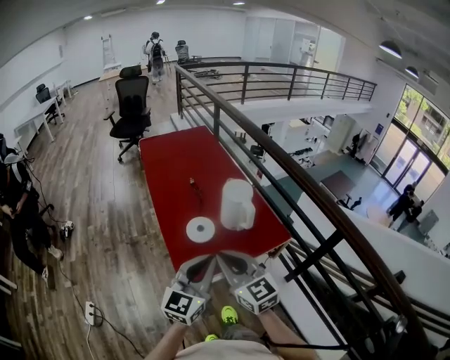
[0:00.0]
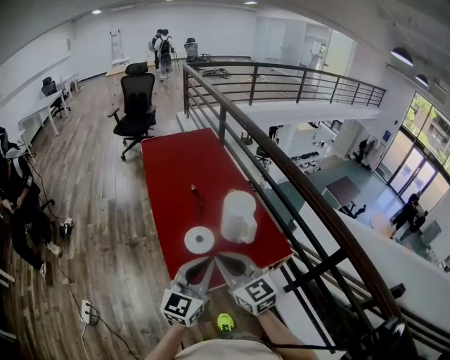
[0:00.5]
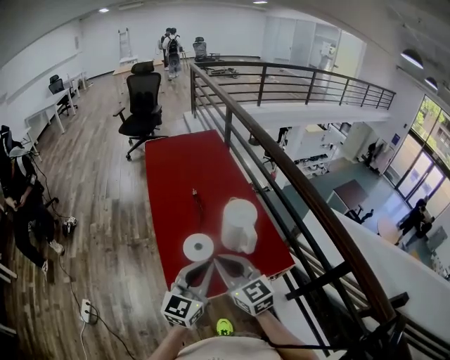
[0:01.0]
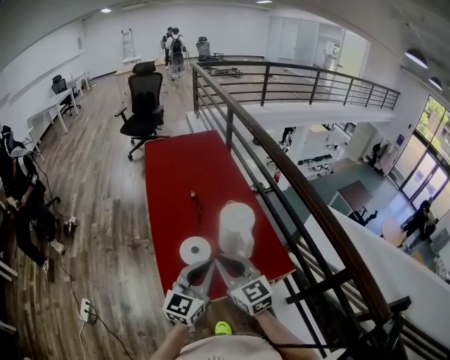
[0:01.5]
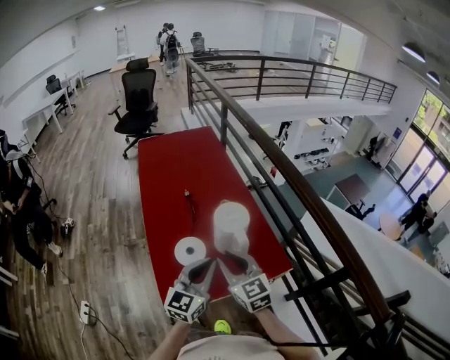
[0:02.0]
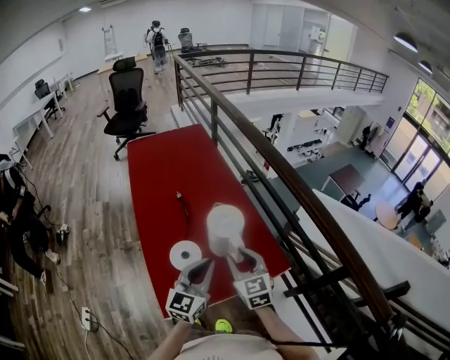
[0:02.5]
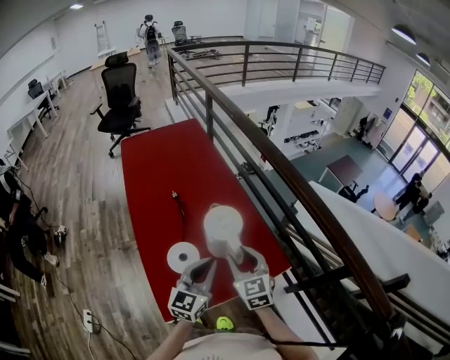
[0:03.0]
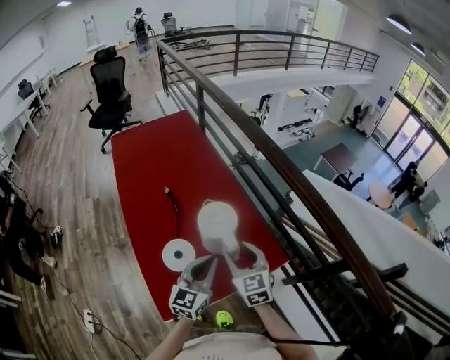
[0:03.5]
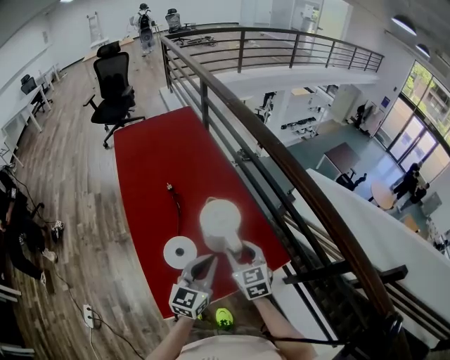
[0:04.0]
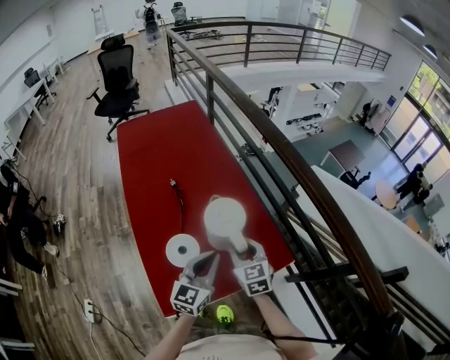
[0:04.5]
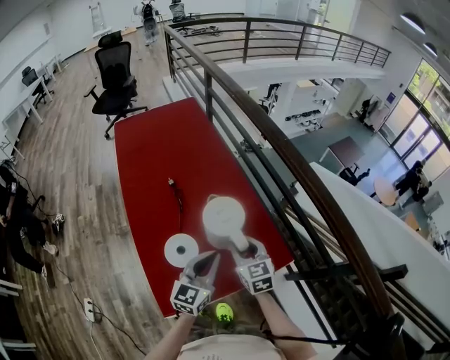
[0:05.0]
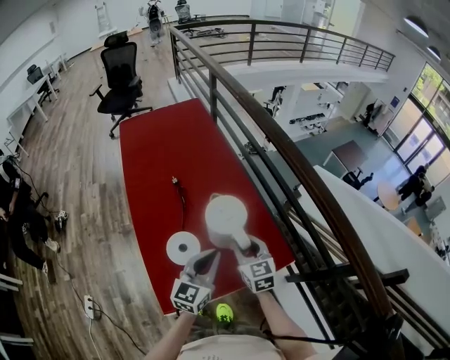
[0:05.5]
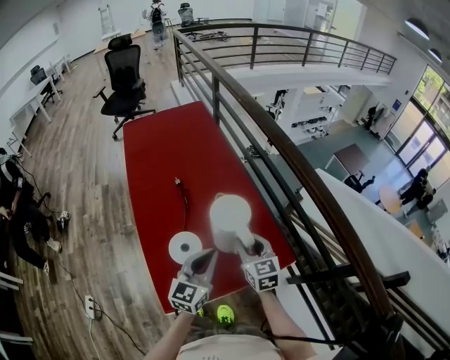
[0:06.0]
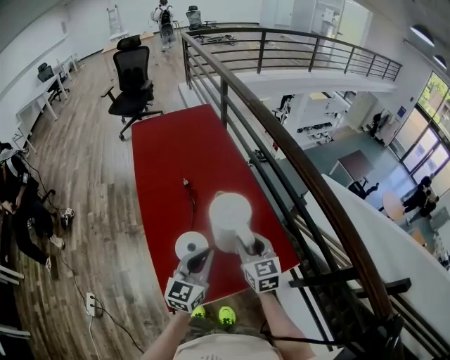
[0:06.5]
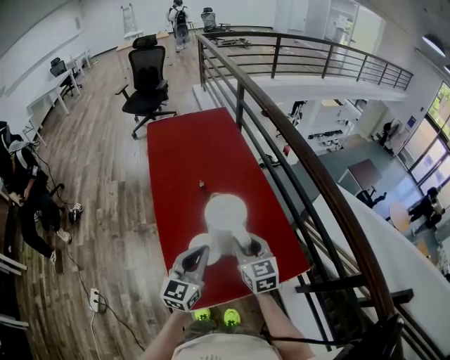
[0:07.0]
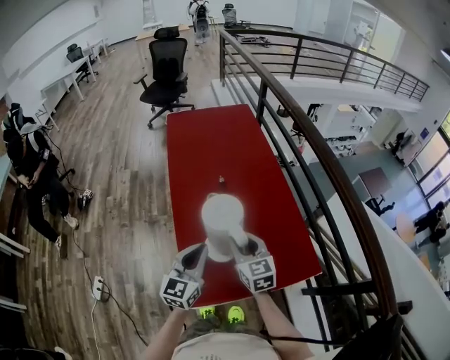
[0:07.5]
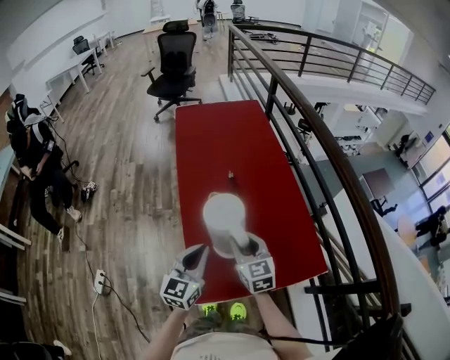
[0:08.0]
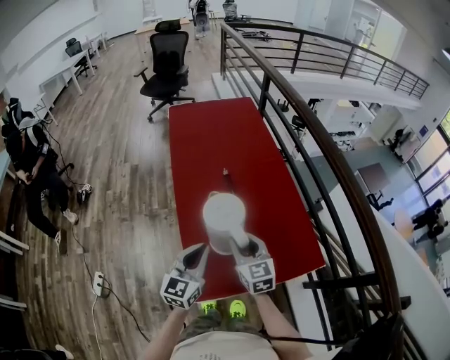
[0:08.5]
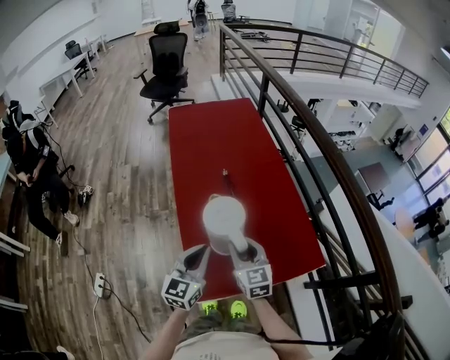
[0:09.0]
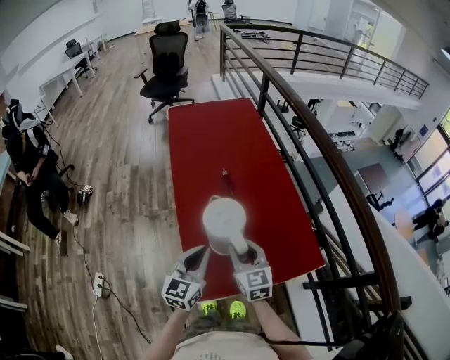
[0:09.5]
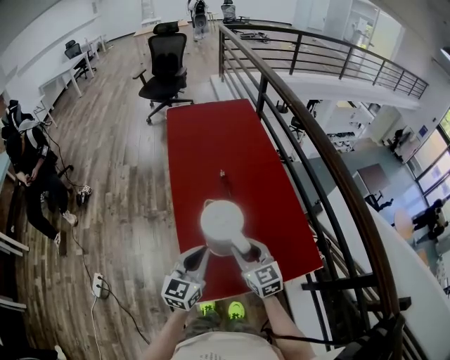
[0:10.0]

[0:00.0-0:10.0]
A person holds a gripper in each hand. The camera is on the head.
0.0 to 2.0 s: The two grippers go some 20 cm forward, to the right and downward. The right gripper opens its fingers.
2.0 to 4.0 s: The right gripper travels downward, forward and to the right by about 15 cm, and turns by some 20 degrees. The left gripper moves forward and downward, about 5 cm.
4.0 to 6.0 s: The grippers stay close to where they were, moving slightly.
6.0 to 8.0 s: Both grippers move to the left, roughly 20 cm.
8.0 to 10.0 s: There are only small adjustments of the grippers.

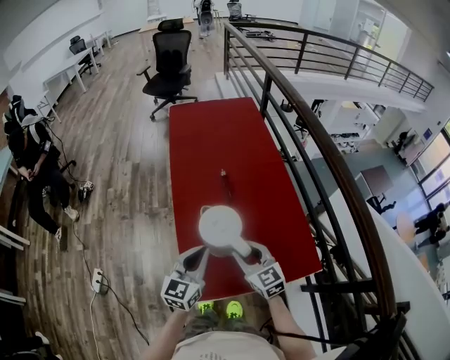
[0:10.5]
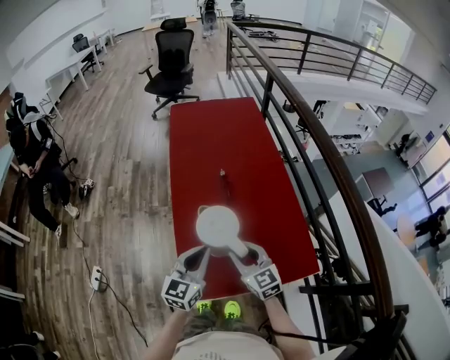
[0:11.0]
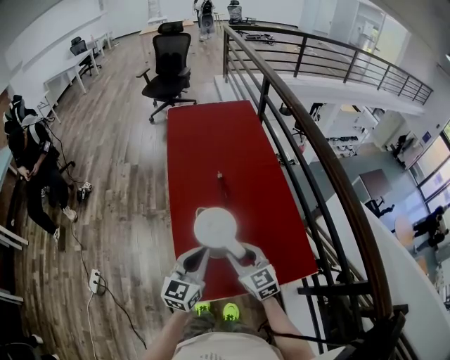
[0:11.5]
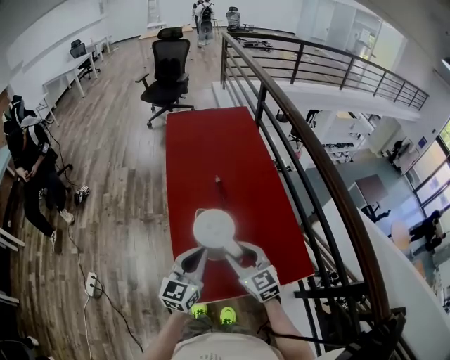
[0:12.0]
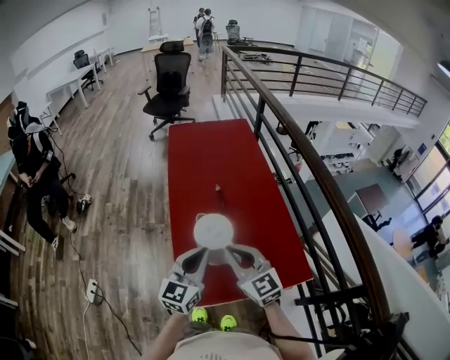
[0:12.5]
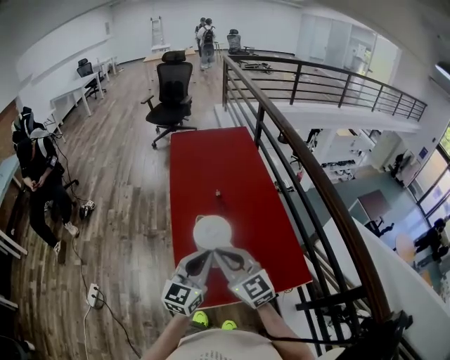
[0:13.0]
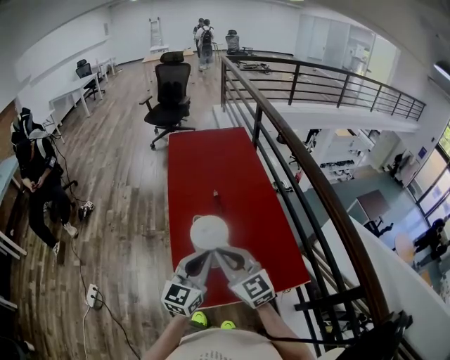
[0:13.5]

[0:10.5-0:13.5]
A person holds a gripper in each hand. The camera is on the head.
10.5 to 12.0 s: The grippers stay close to where they were, moving slightly.
12.0 to 13.5 s: The right gripper is displaced upward by approximately 10 cm, and closes up, while the left gripper changes place by roughly 5 cm.

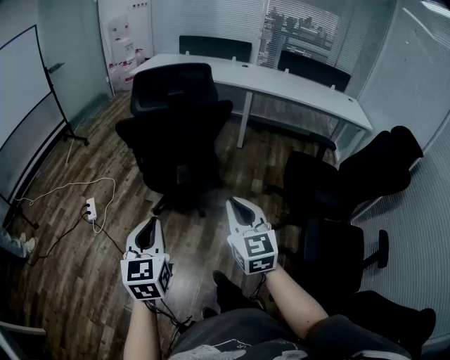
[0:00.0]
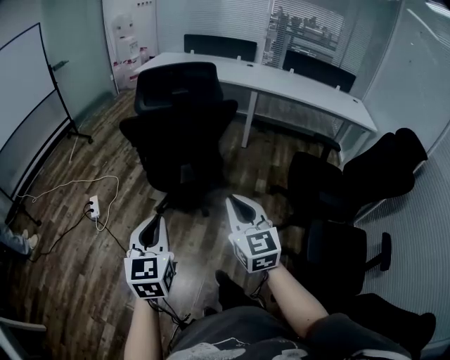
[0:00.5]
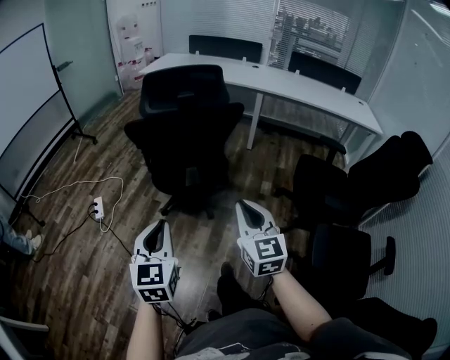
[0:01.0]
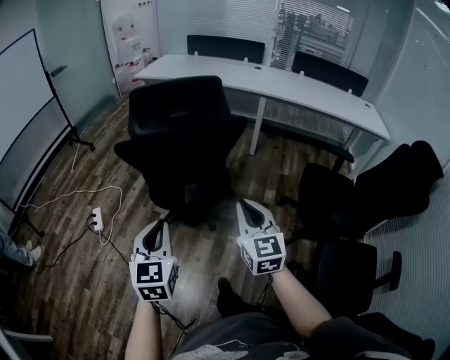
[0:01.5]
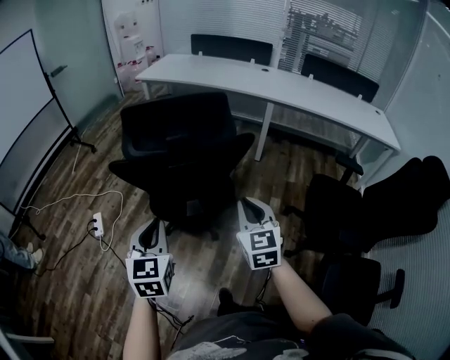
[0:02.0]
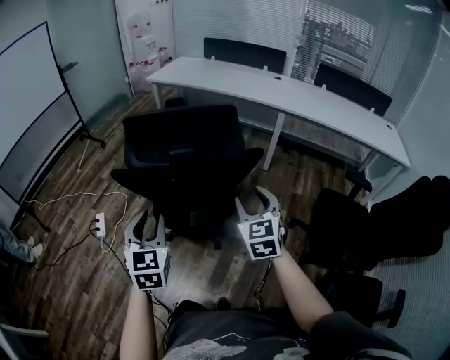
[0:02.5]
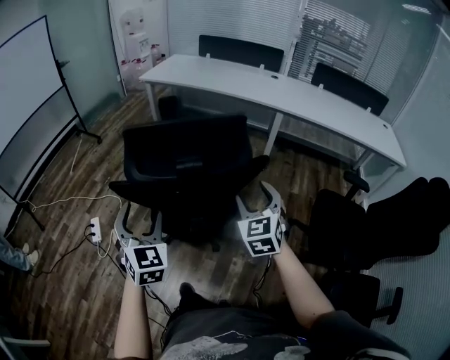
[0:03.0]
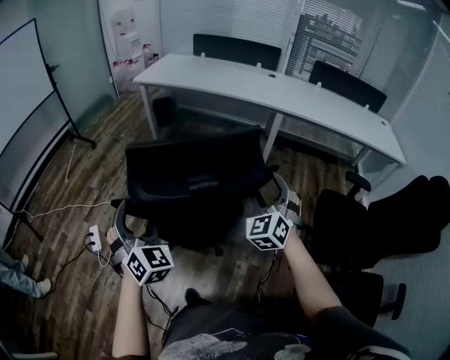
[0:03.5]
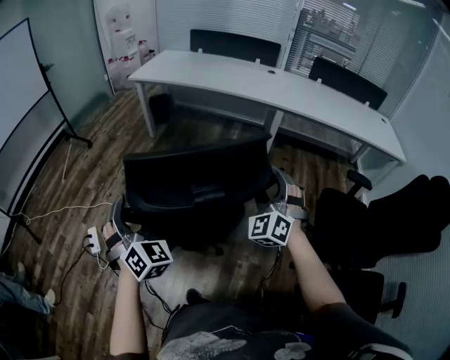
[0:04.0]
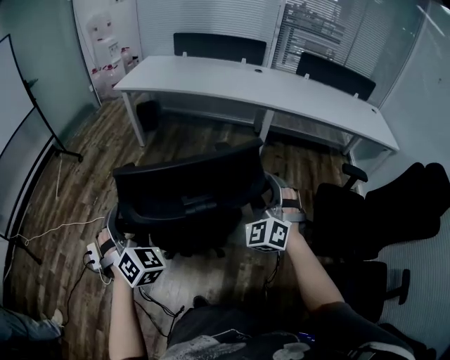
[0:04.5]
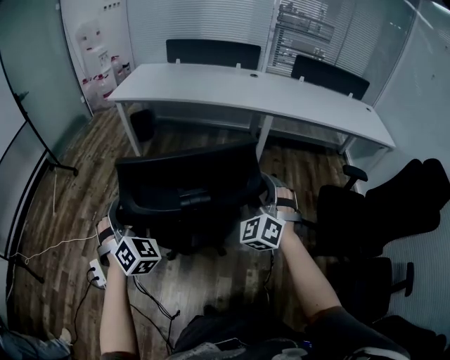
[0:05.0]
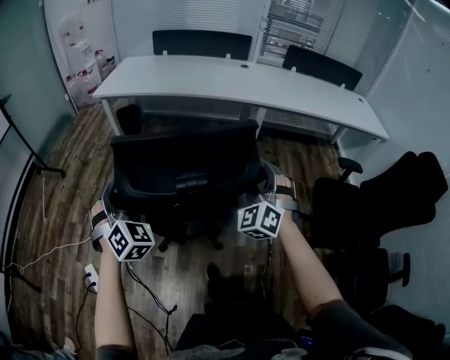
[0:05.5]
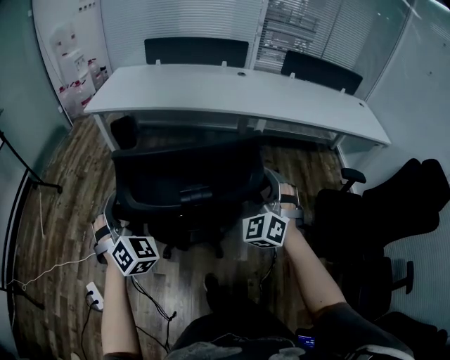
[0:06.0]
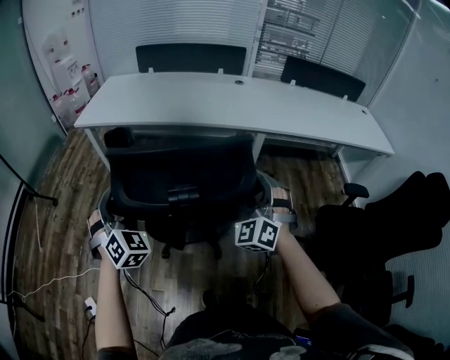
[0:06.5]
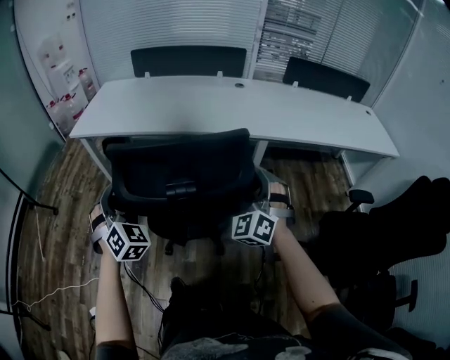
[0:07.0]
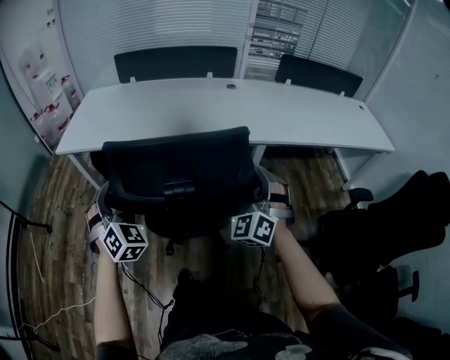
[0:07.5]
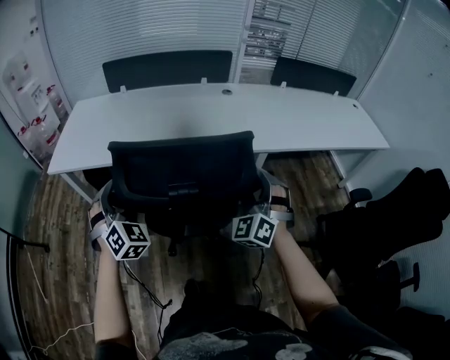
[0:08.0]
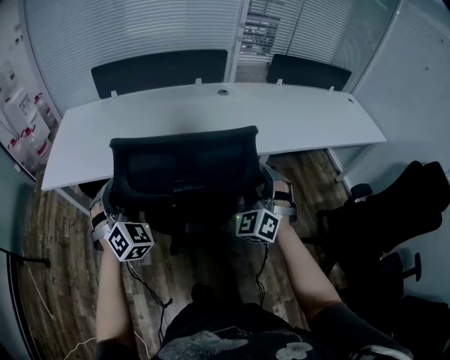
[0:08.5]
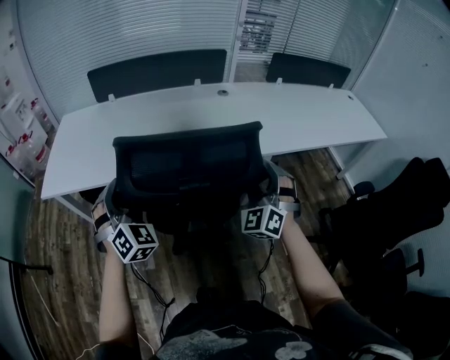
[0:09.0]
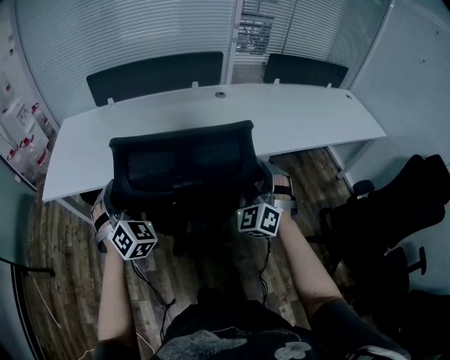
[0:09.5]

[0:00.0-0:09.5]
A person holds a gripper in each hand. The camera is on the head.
0.0 to 2.0 s: Both grippers travel together forward, roughly 25 cm.
2.0 to 4.0 s: The left gripper is displaced forward and to the left by about 25 cm, rotates around the line of its fingers by approximately 40 degrees, clockwise from behind, and opens. The right gripper is displaced forward by about 20 cm, rotates around the line of its fingers by approximately 50 degrees, counterclockwise from behind, and opens up.
4.0 to 5.5 s: The right gripper travels forward and to the left by some 15 cm. The left gripper travels forward by some 20 cm.
5.5 to 7.5 s: Both grippers travel together forward, about 35 cm.
7.5 to 9.5 s: Both grippers travel together forward, approximately 15 cm.

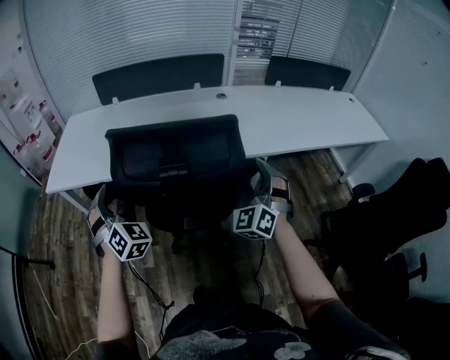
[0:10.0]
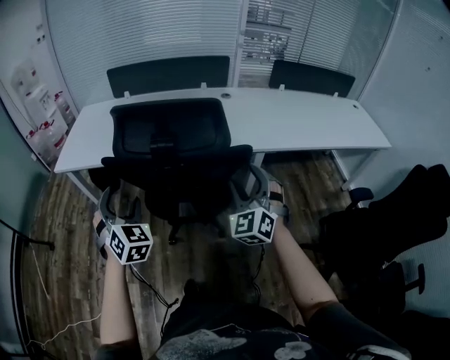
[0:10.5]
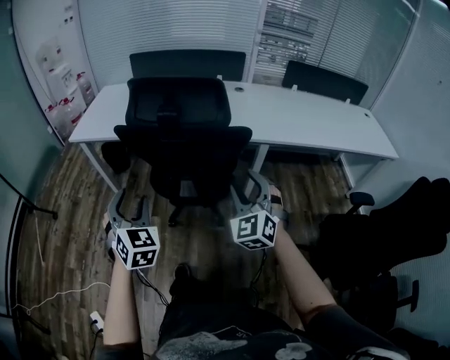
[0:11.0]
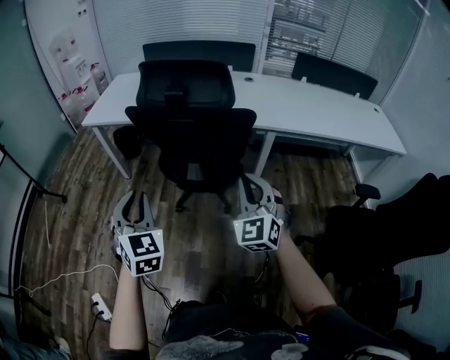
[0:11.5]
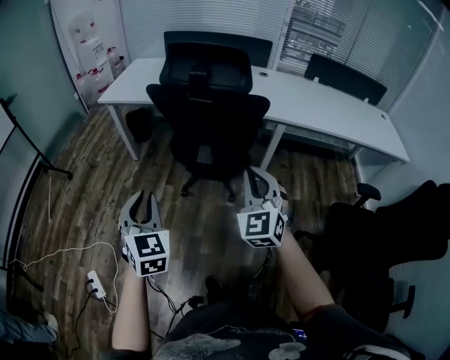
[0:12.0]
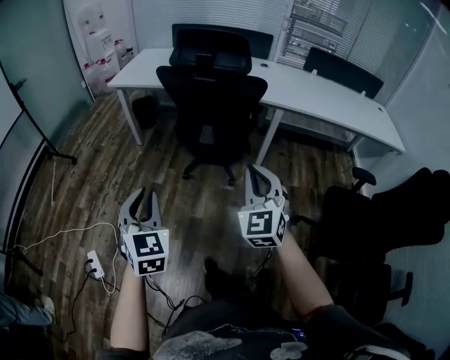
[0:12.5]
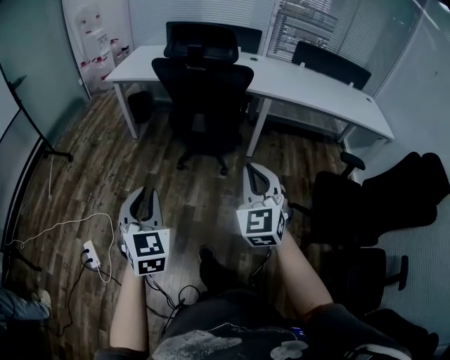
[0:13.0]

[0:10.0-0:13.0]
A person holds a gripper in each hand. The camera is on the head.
10.0 to 11.5 s: The grippers both shift backward by some 30 cm. The left gripper swivels approximately 30 degrees, and closes up. The right gripper changes its angle by roughly 30 degrees, and closes its fingers.
11.5 to 13.0 s: Both grippers travel together backward, approximately 30 cm.

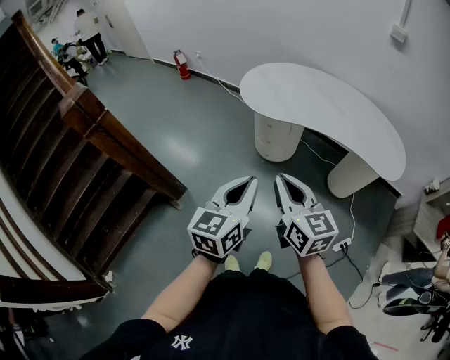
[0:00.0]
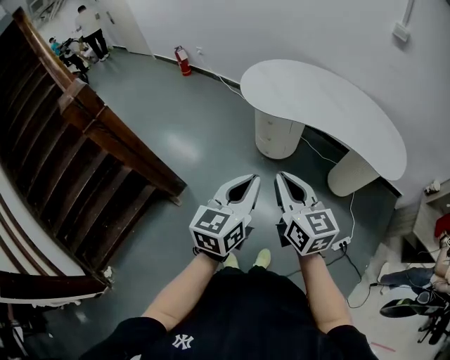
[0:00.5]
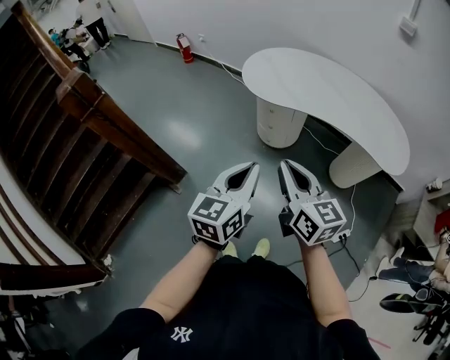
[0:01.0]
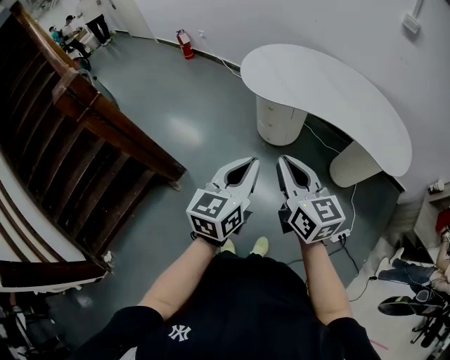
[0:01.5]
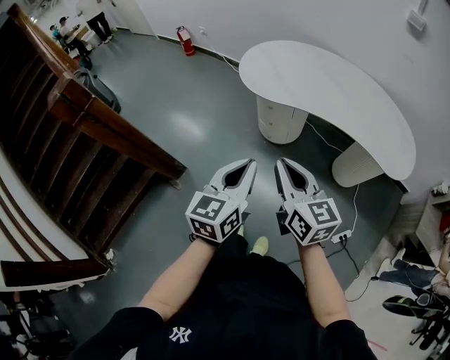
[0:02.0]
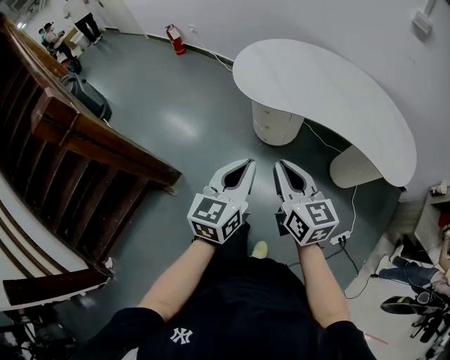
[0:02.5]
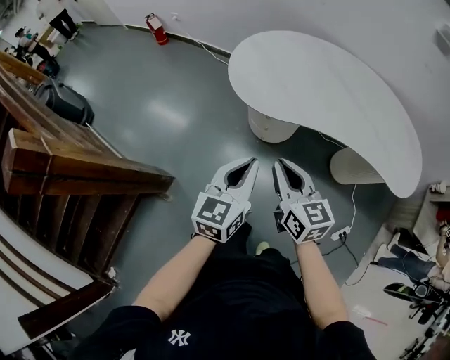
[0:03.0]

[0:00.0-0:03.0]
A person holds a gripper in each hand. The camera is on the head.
0.0 to 1.5 s: The left gripper shifts by some 5 cm.
1.5 to 3.0 s: The left gripper goes roughly 25 cm forward. The right gripper goes approximately 25 cm forward and downward.
